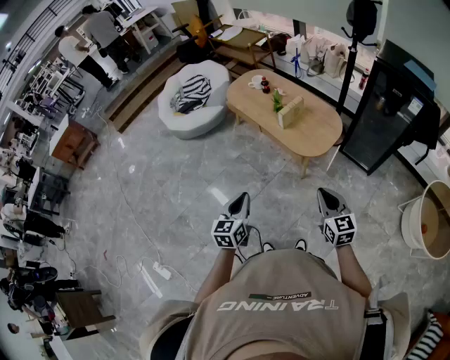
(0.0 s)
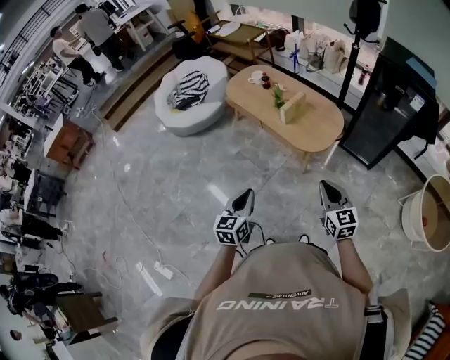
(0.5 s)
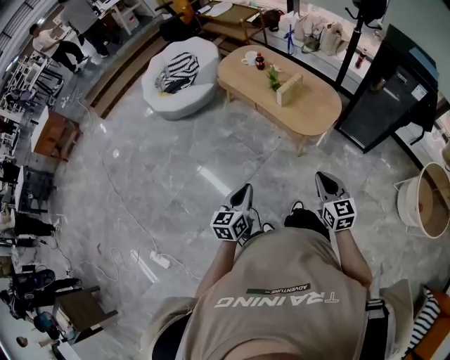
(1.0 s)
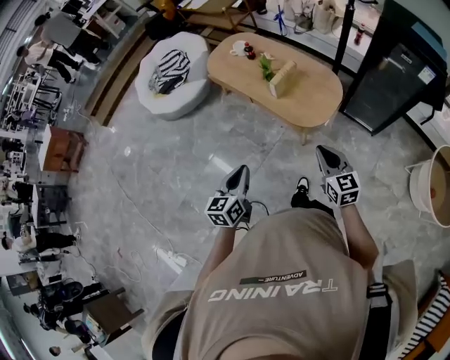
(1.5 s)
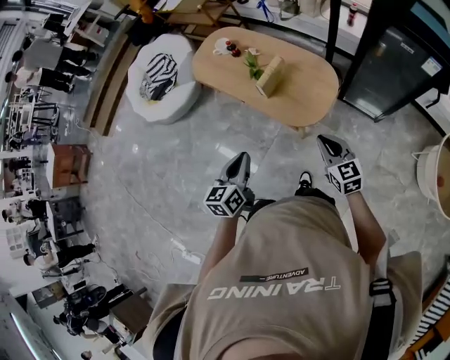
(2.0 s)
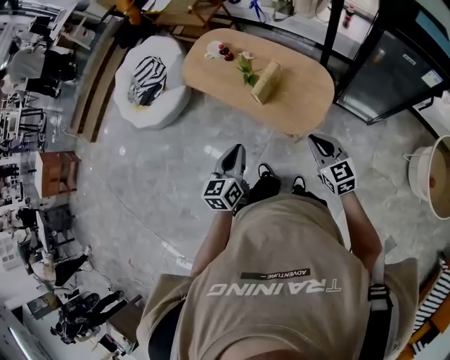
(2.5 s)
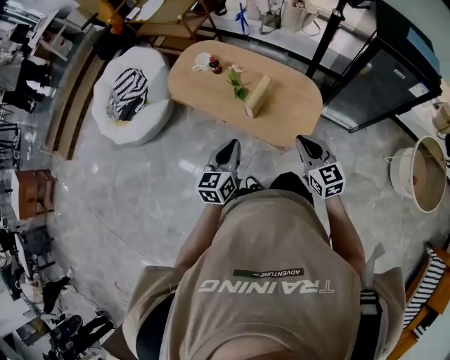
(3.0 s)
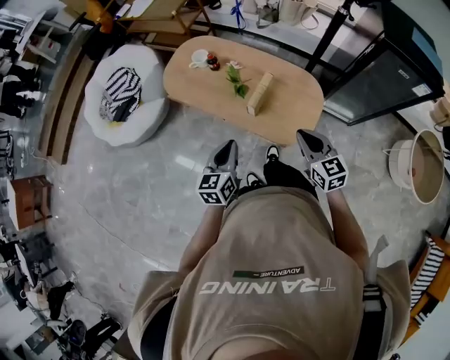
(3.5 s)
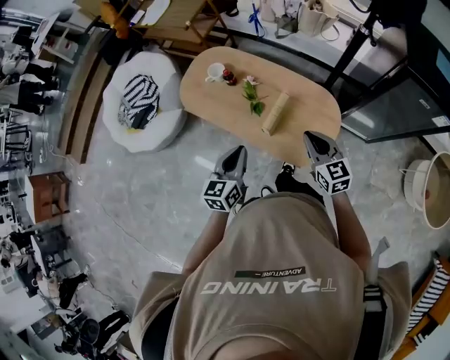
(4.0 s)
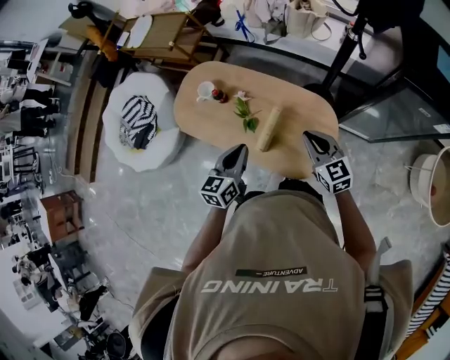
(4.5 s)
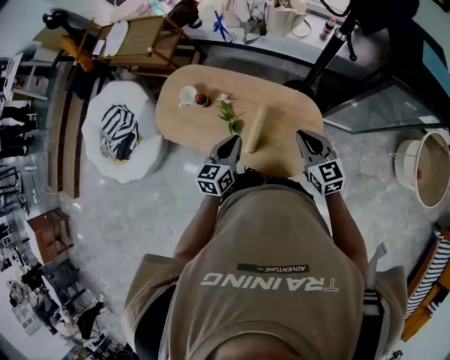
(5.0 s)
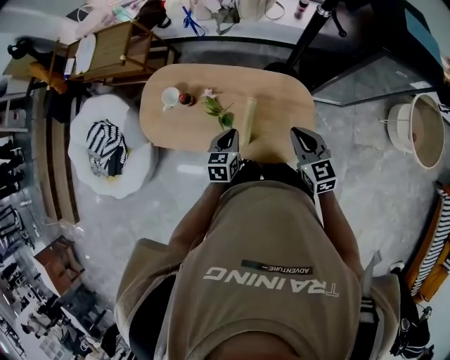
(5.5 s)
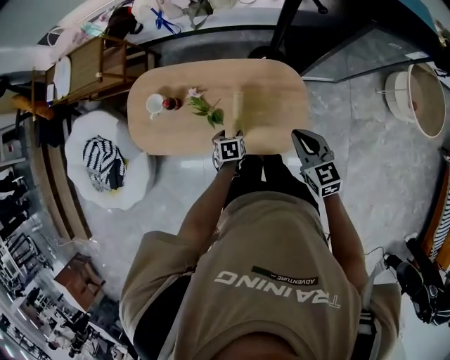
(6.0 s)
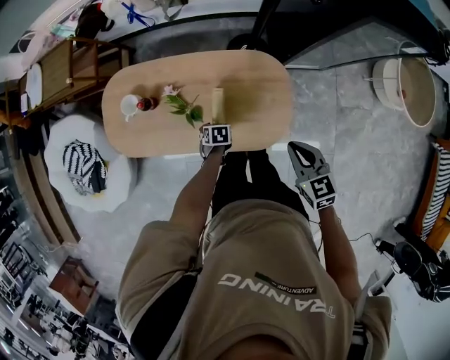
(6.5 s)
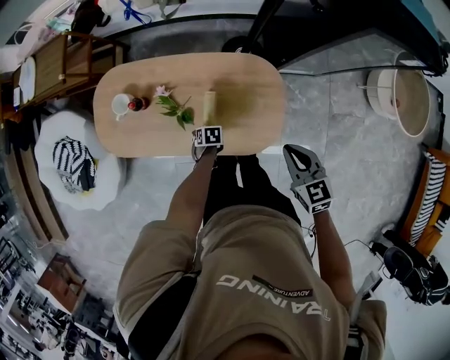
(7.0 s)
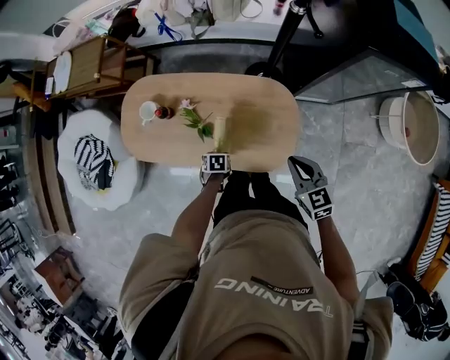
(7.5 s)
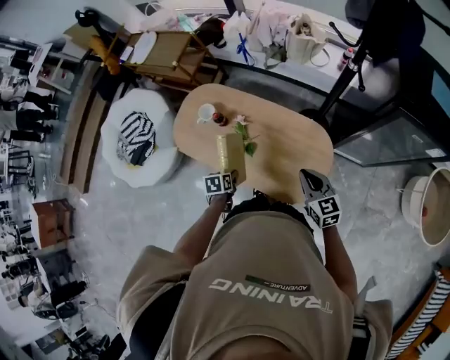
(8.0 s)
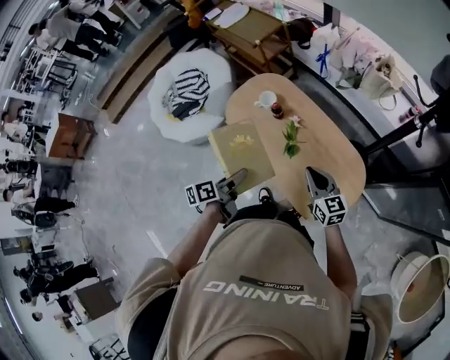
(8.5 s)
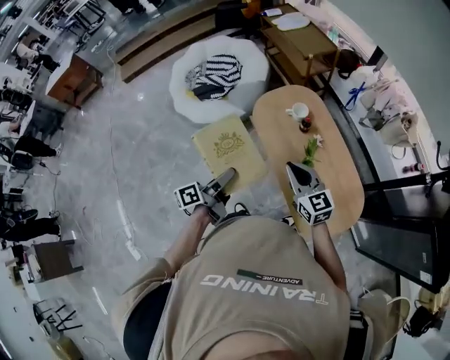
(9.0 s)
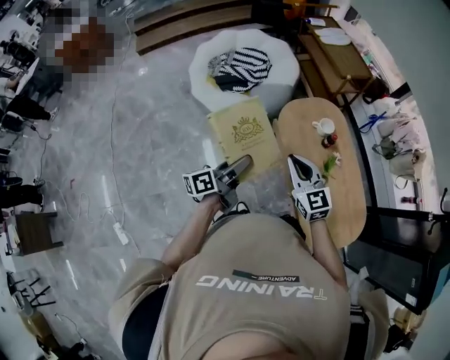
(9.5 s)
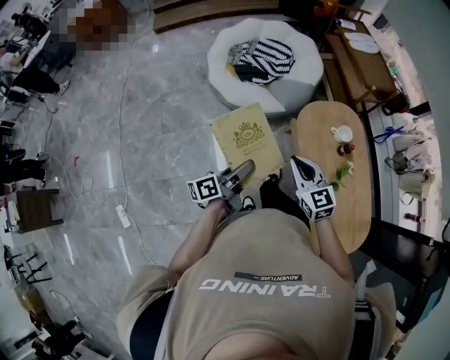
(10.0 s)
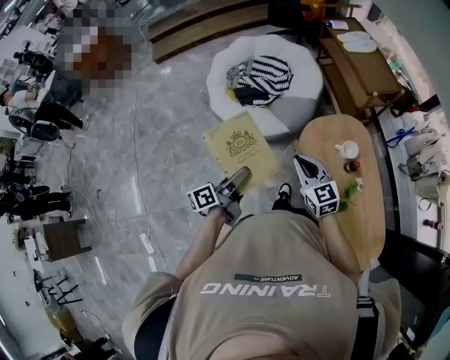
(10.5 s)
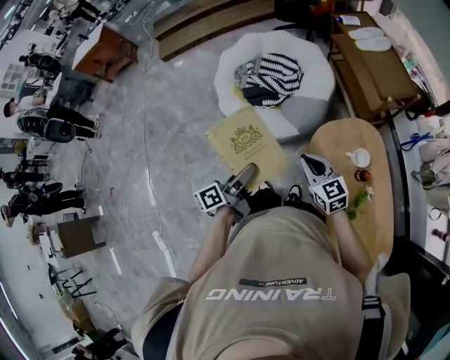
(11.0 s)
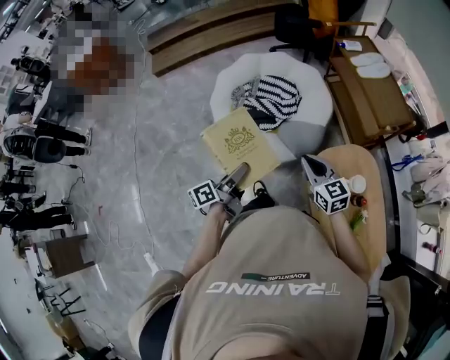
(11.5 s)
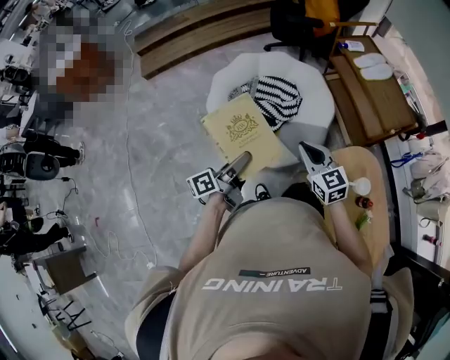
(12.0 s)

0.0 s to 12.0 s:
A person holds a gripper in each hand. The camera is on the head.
0.0 to 2.0 s: The grippers both shift forward by roughly 25 cm.
2.0 to 4.0 s: The grippers both shift forward by approximately 25 cm.
4.0 to 6.0 s: The left gripper travels downward by about 25 cm, tilts its fingers approximately 50 degrees downward, and opens. Meanwhile the right gripper moves approximately 10 cm, and rotates about 30 degrees.
6.0 to 8.0 s: The left gripper ends up about 15 cm from where it was, and changes its angle by roughly 30 degrees.
8.0 to 10.0 s: The two grippers travel together, some 50 cm. The right gripper swivels some 60 degrees. Meanwhile the left gripper points its fingers roughly 60 degrees further upward.
10.0 to 12.0 s: The two grippers travel together, forward, roughly 40 cm.

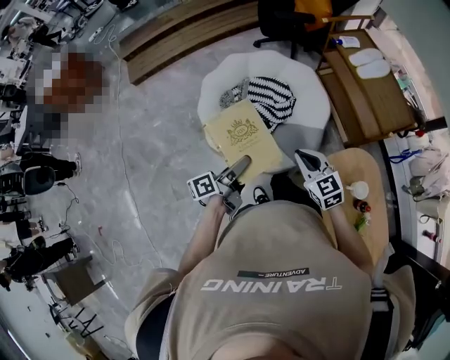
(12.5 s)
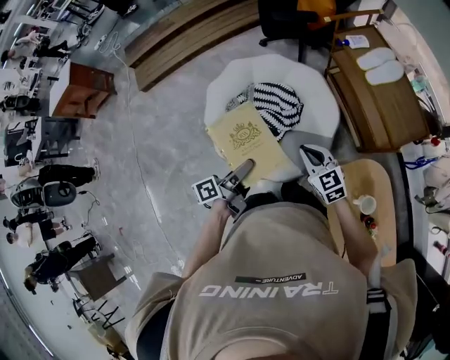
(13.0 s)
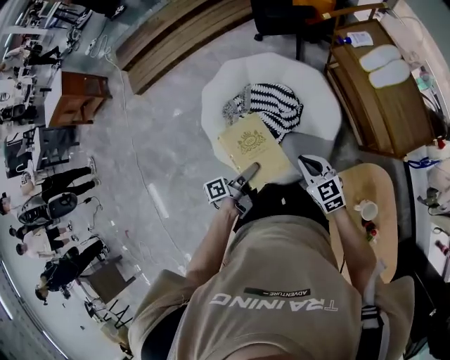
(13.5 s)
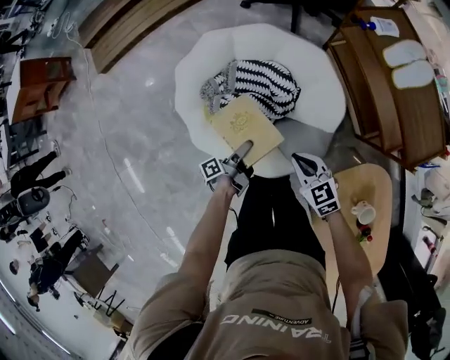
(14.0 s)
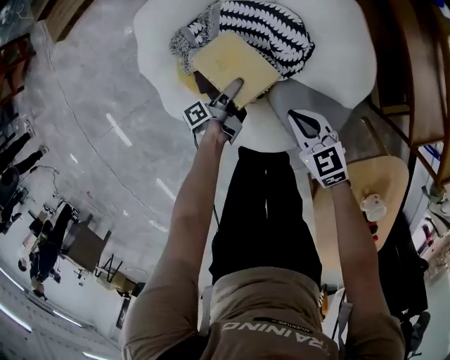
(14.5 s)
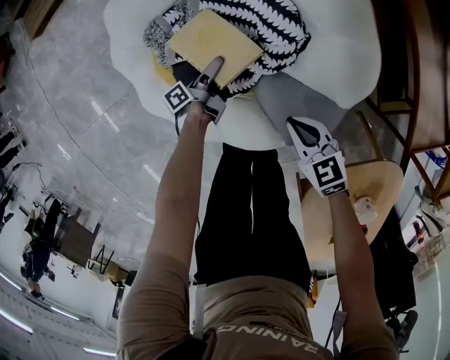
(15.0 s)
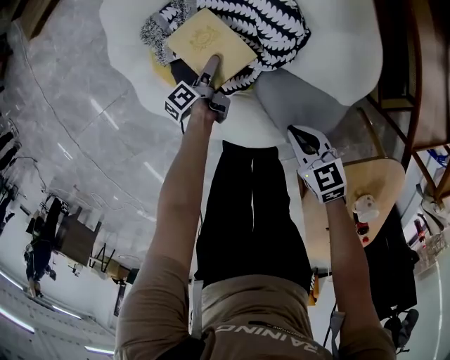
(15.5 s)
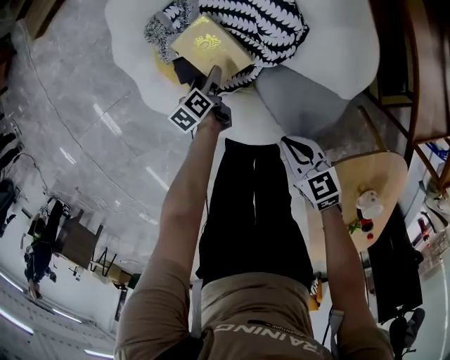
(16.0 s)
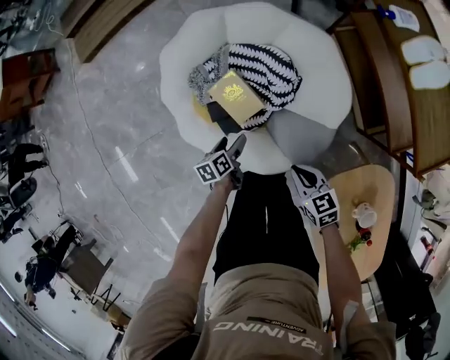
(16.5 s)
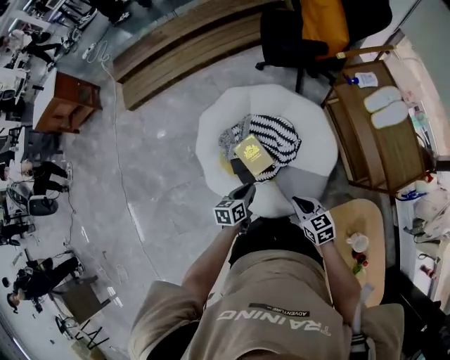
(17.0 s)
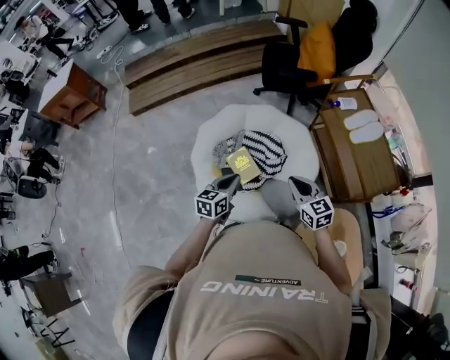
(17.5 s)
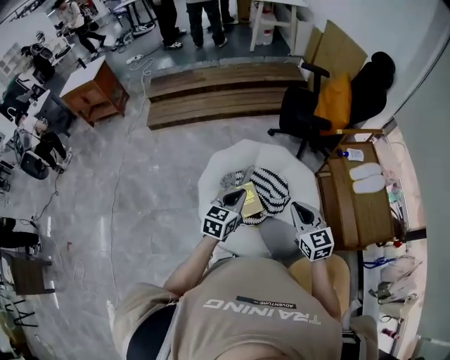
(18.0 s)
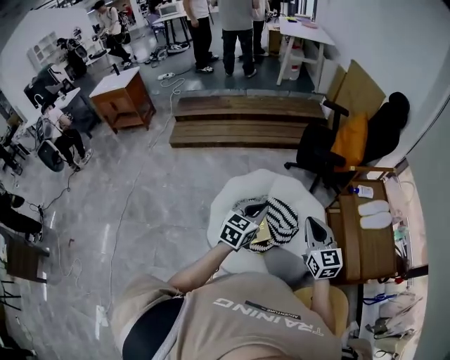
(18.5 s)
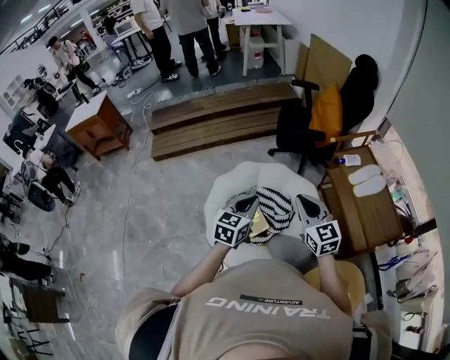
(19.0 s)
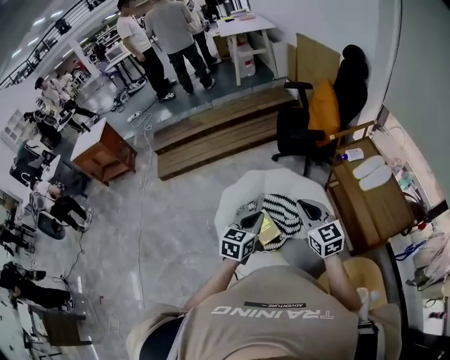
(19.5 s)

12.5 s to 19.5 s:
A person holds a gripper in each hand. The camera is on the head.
12.5 to 14.5 s: The grippers both shift downward and forward by roughly 50 cm. The right gripper turns by some 20 degrees, while the left gripper turns by roughly 30 degrees.
14.5 to 16.0 s: The right gripper heads backward, covering about 10 cm, while the left gripper is displaced downward and to the left by some 10 cm, changes its angle by some 50 degrees, and opens its fingers.
16.0 to 17.5 s: Both grippers move upward, some 50 cm. The left gripper rolls clockwise, seen from behind, by some 40 degrees, and closes up. The right gripper swivels about 30 degrees.
17.5 to 19.5 s: The grippers both shift upward by about 15 cm.

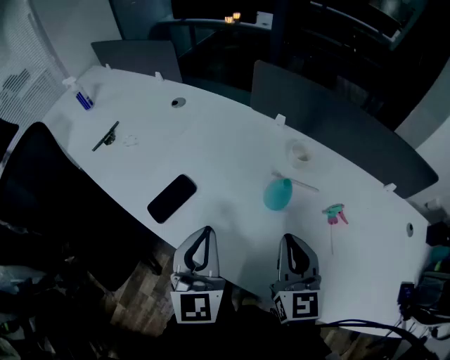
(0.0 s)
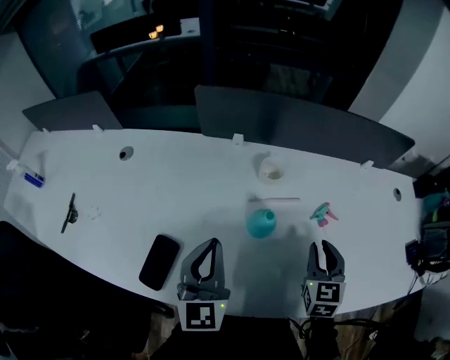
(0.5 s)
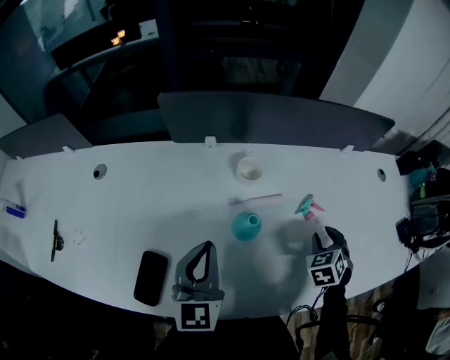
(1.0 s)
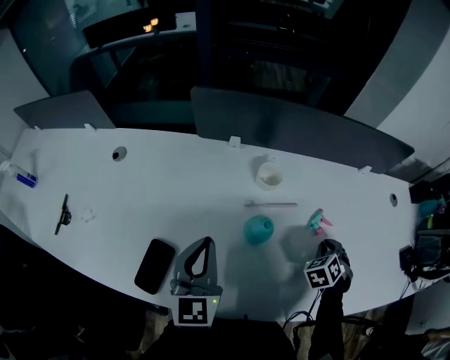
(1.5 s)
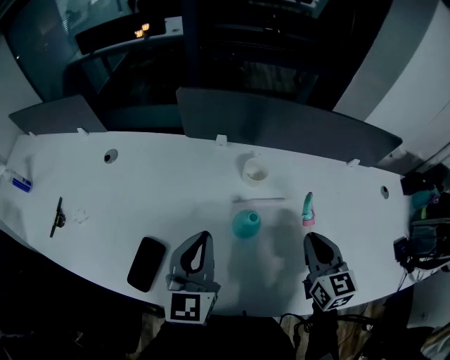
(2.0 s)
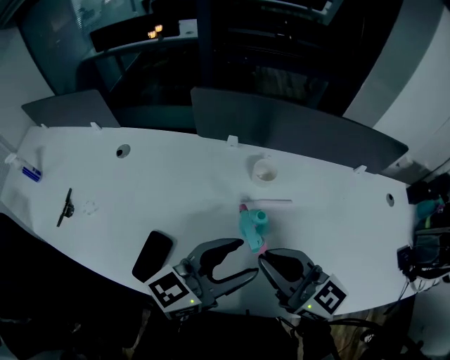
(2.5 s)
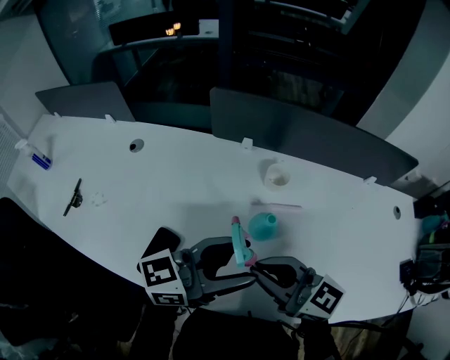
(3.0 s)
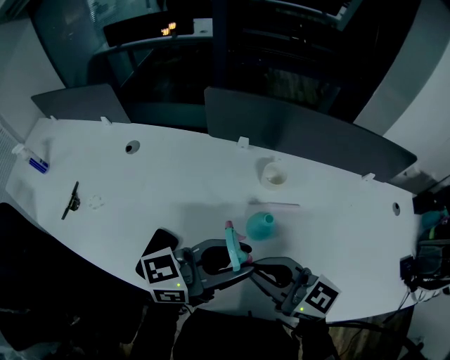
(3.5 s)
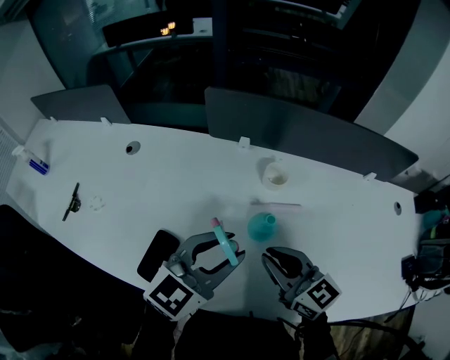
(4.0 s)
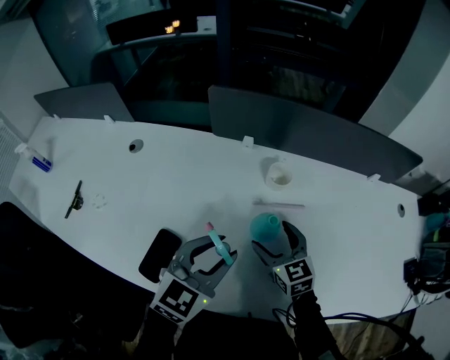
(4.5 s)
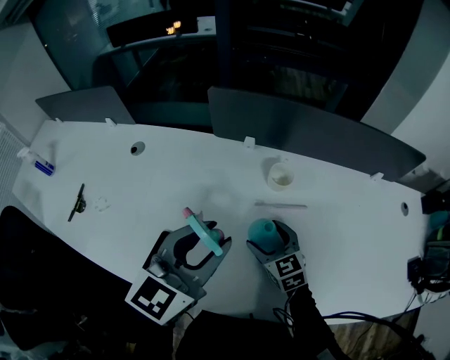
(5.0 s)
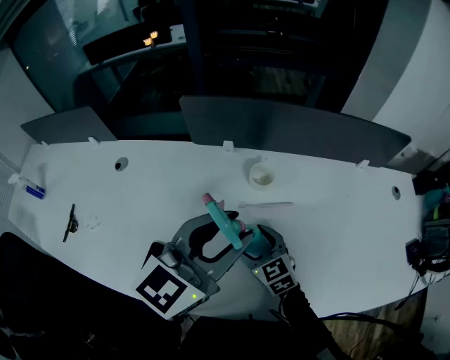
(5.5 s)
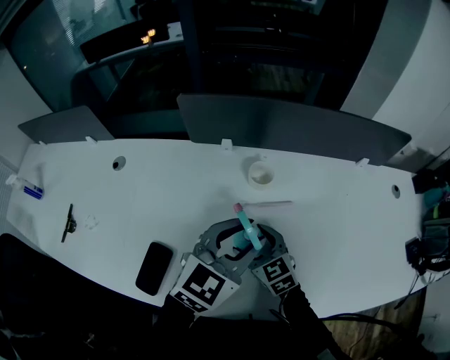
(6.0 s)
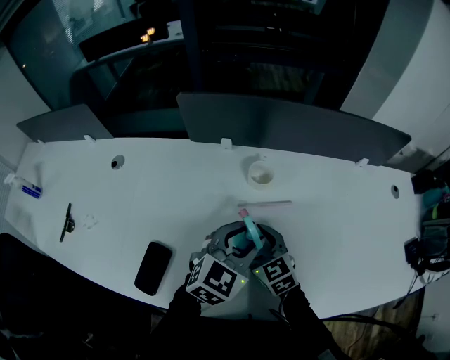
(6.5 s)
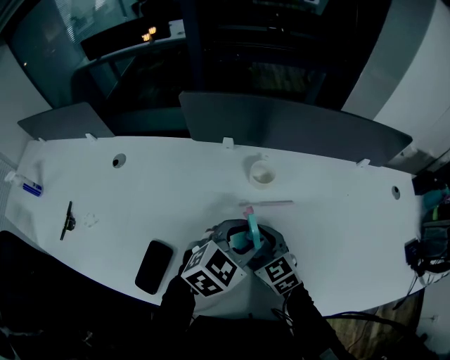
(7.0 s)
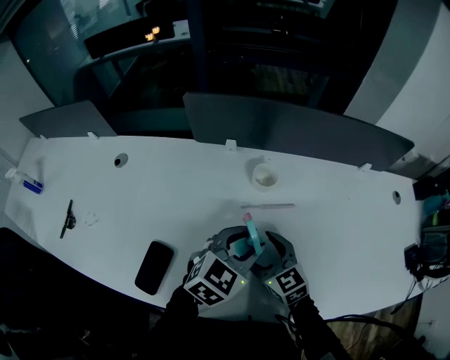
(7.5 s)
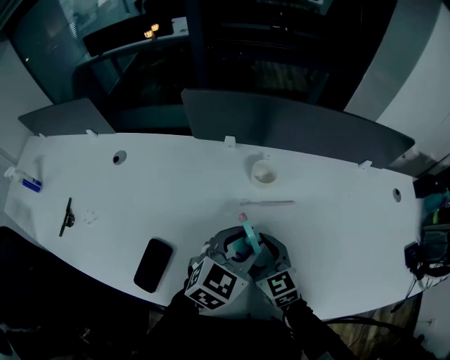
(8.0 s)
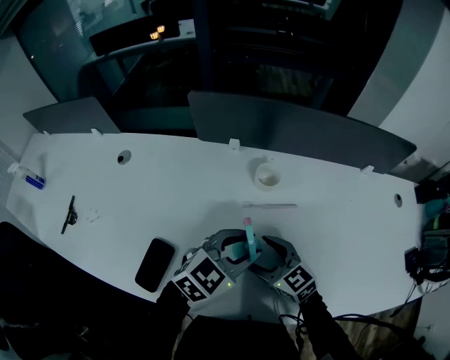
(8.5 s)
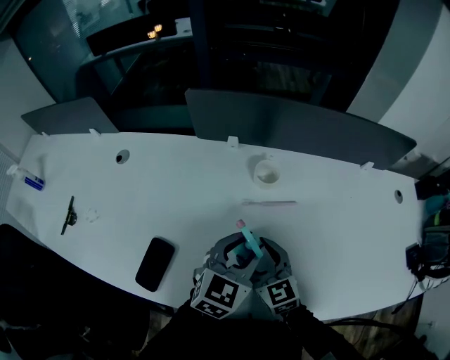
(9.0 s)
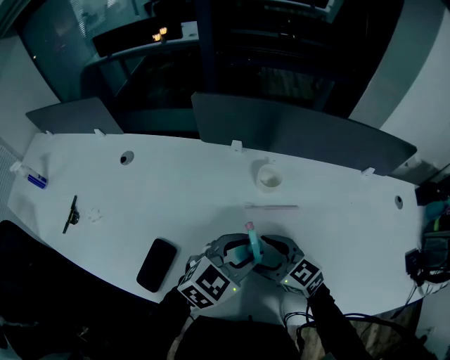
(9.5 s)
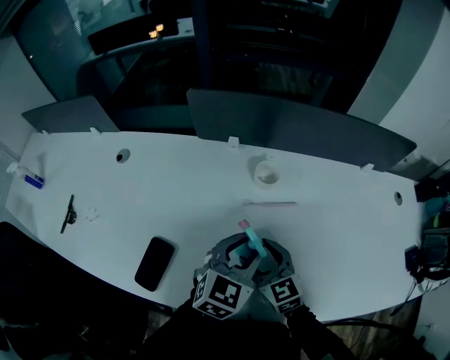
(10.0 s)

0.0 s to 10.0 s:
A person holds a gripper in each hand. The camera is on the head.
0.0 to 2.0 s: The right gripper travels downward and back again, roughly 15 cm each way, and changes its angle by some 20 degrees, while the left gripper moves roughly 15 cm, and turns by roughly 30 degrees.
2.0 to 4.0 s: The right gripper goes upward and returns, some 10 cm each way, and swivels some 40 degrees, while the left gripper swivels roughly 30 degrees, and opens its fingers.
4.0 to 6.0 s: The right gripper moves downward and forward, about 15 cm, swivels about 20 degrees, and opens its fingers. Meanwhile the left gripper is displaced to the right by approximately 5 cm.
6.0 to 8.0 s: The left gripper shifts roughly 5 cm downward.
